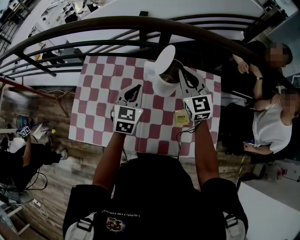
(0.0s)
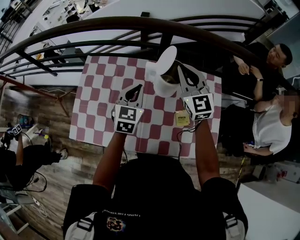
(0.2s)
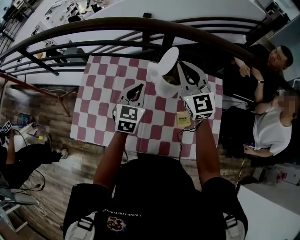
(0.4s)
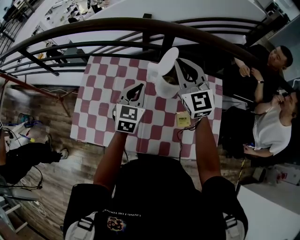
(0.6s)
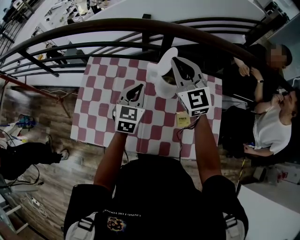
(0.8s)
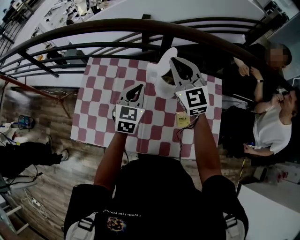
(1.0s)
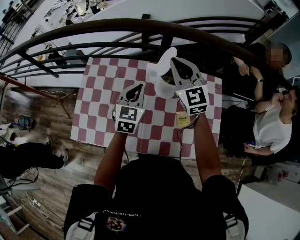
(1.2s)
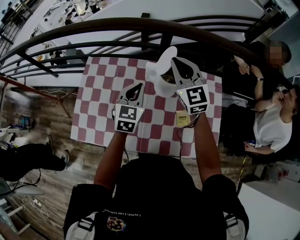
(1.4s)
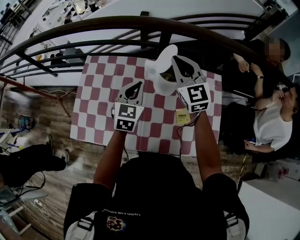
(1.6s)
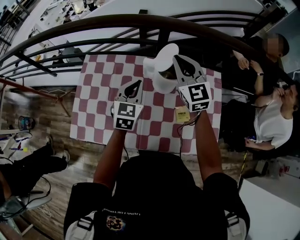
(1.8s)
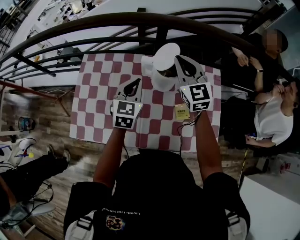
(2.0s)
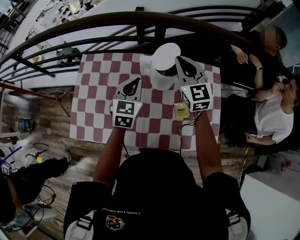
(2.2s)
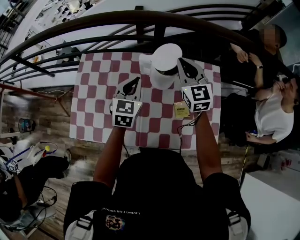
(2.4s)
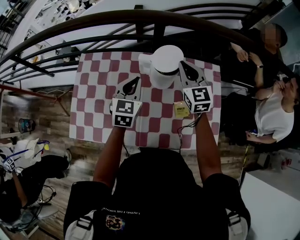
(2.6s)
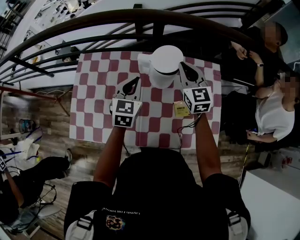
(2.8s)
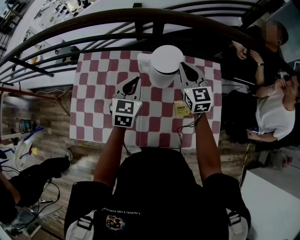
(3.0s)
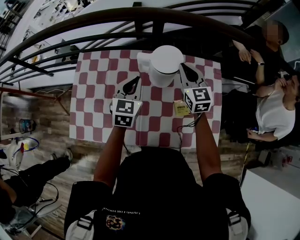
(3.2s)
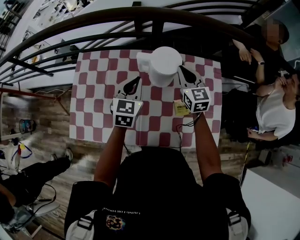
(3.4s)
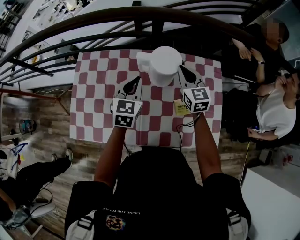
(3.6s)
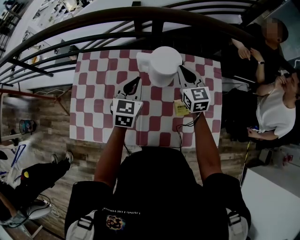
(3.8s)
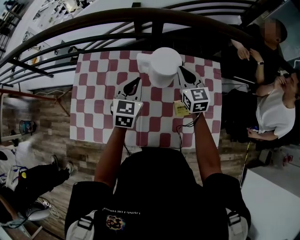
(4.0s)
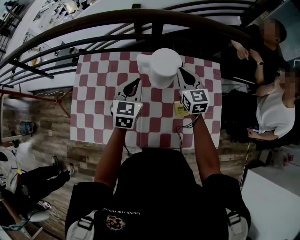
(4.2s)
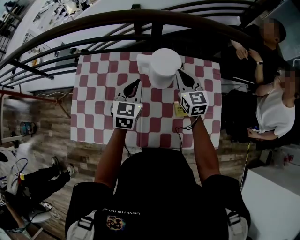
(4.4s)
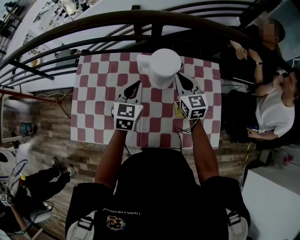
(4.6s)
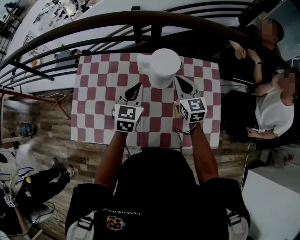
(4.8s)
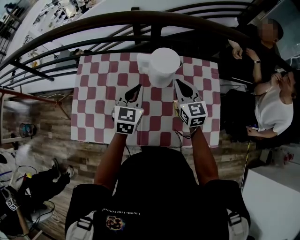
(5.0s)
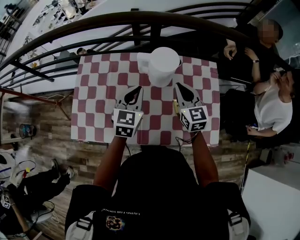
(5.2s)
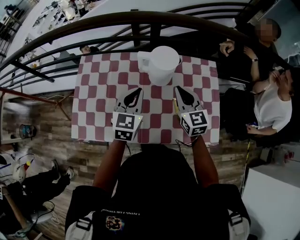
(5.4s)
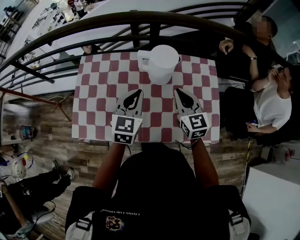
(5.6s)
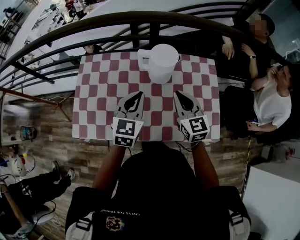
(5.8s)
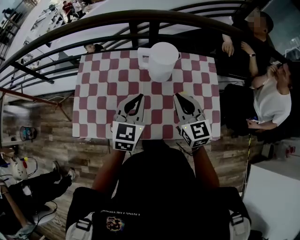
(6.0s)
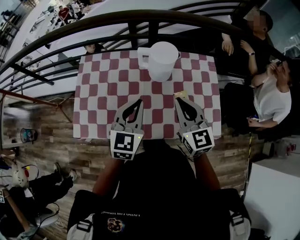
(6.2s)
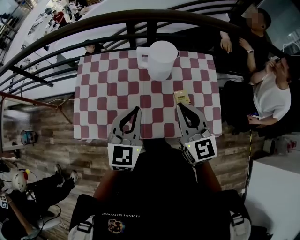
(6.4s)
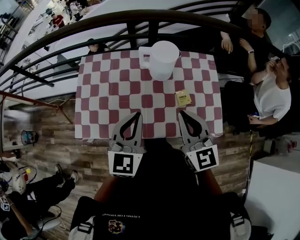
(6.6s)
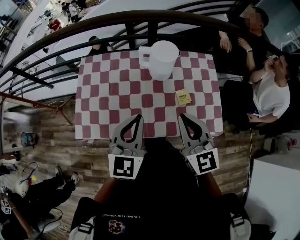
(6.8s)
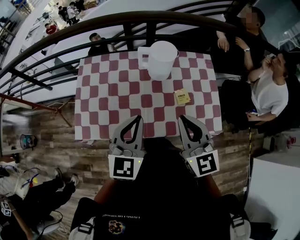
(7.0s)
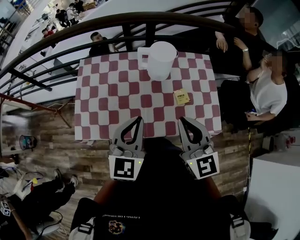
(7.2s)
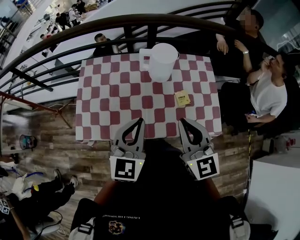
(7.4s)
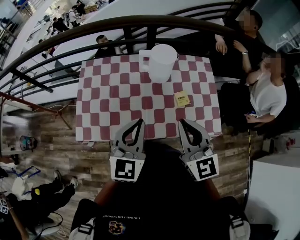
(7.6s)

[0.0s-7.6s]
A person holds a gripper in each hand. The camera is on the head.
0.0s to 1.6s: The right gripper changes place by about 5 cm.
1.6s to 3.0s: The right gripper goes some 10 cm downward and to the right.
3.0s to 4.6s: The right gripper moves some 5 cm.
4.6s to 6.0s: The right gripper travels backward by about 15 cm, while the left gripper travels backward and upward by about 15 cm.
6.0s to 7.6s: The two grippers go roughly 15 cm backward and upward.

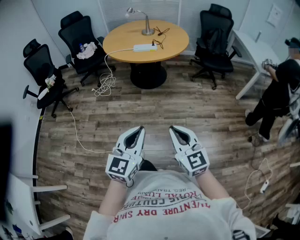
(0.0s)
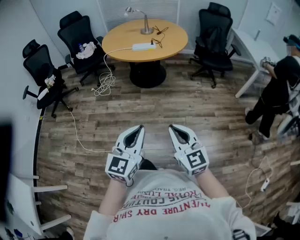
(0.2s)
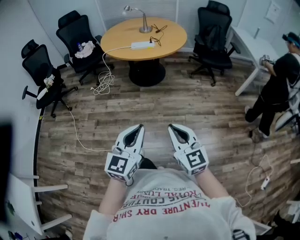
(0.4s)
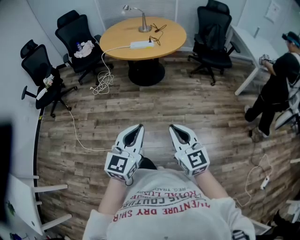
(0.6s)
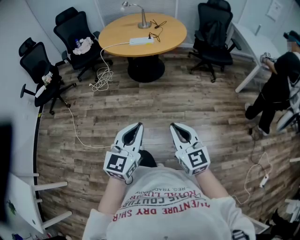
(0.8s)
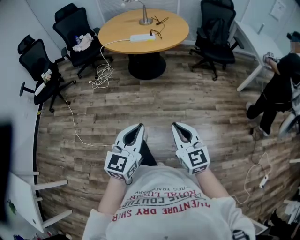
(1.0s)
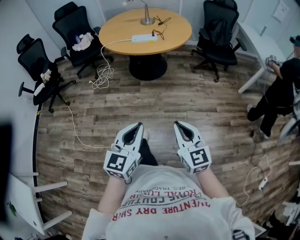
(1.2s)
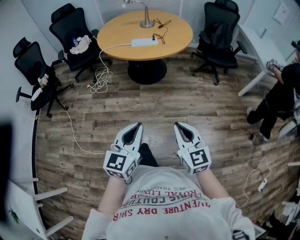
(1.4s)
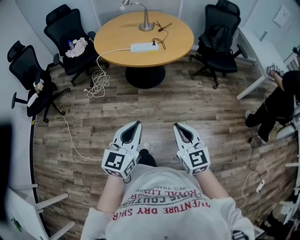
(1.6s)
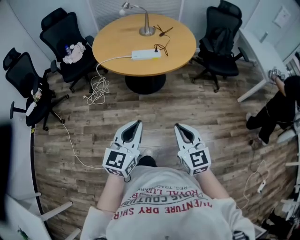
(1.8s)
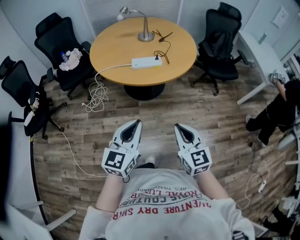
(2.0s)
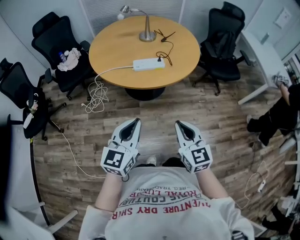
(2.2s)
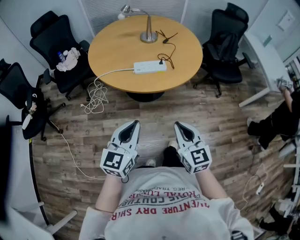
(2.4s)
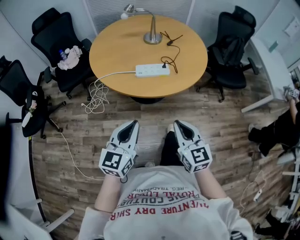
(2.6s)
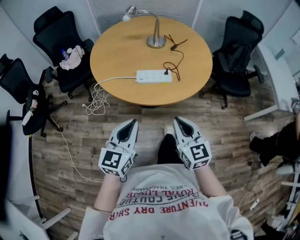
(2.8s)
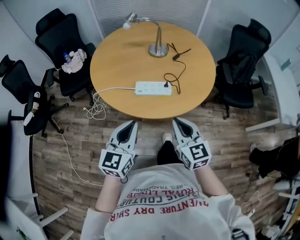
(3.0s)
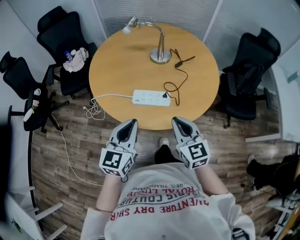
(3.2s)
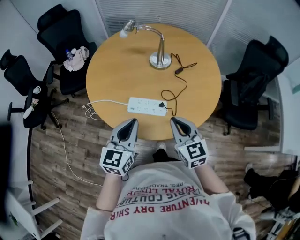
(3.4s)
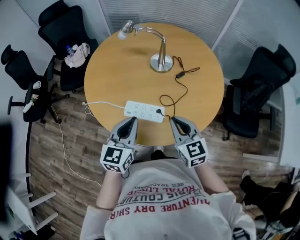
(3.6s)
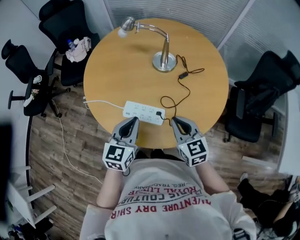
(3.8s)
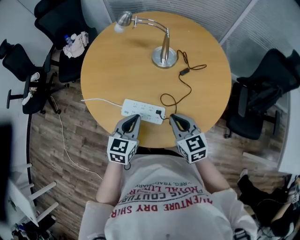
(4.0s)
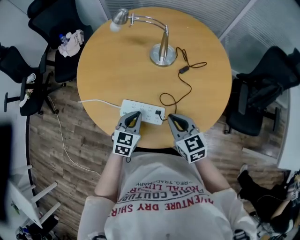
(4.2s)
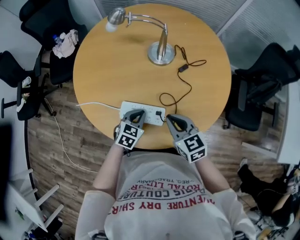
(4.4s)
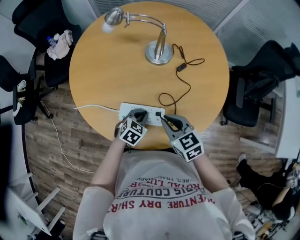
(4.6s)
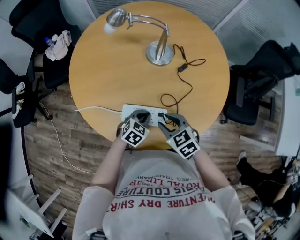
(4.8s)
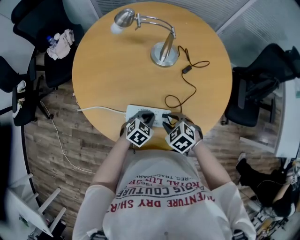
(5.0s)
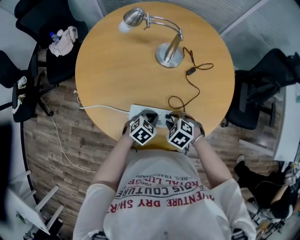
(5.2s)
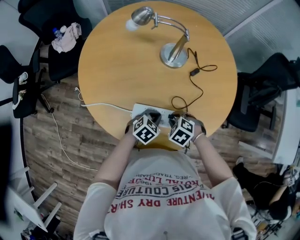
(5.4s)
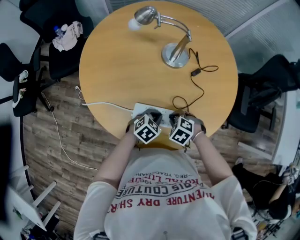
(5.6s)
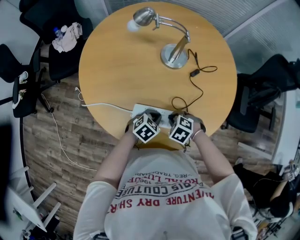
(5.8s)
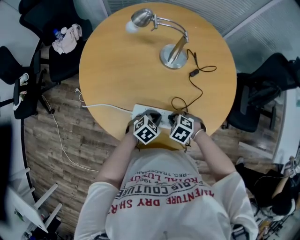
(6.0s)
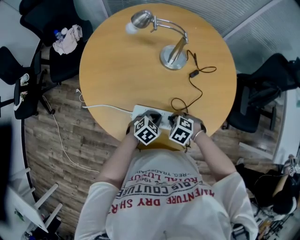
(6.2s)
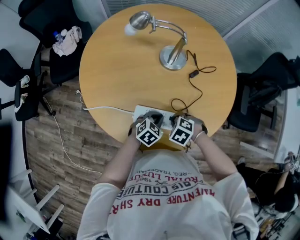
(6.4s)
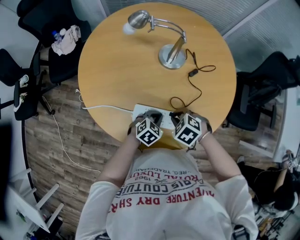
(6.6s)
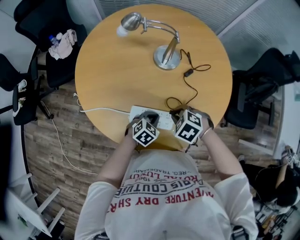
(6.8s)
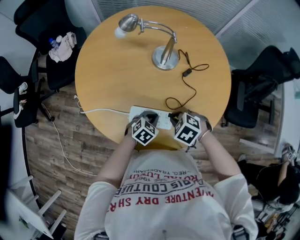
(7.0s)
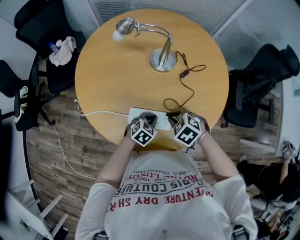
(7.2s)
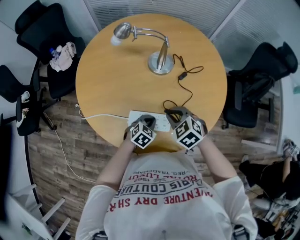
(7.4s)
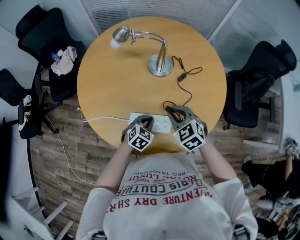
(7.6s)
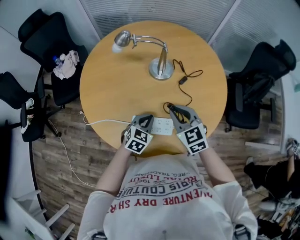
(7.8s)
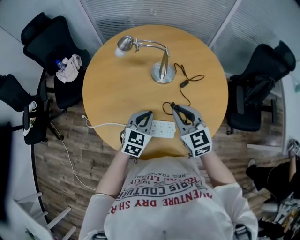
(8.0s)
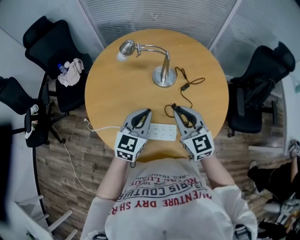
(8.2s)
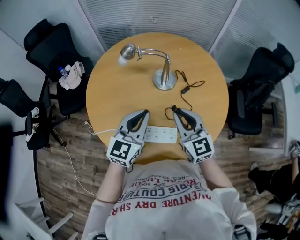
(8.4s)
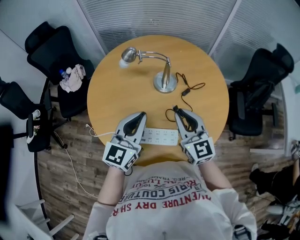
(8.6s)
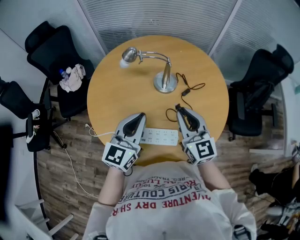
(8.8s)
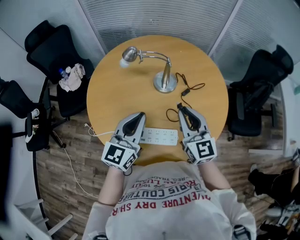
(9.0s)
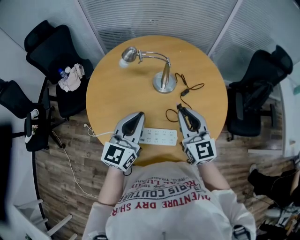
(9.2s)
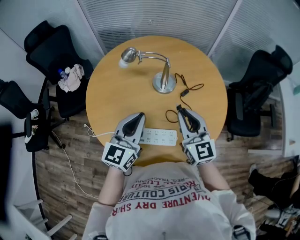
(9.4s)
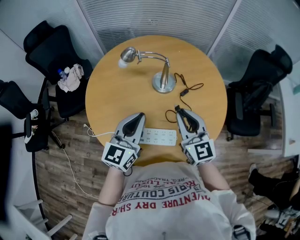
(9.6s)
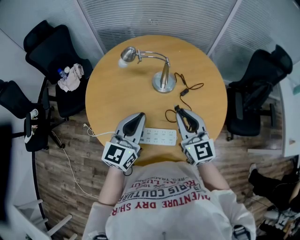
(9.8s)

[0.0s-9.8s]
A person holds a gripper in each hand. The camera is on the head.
0.0s to 1.4s: The two grippers go some 10 cm forward.
1.4s to 2.8s: The two grippers travel together, forward, roughly 40 cm.
2.8s to 4.2s: The right gripper moves forward, about 30 cm, and turns by some 30 degrees; the left gripper travels forward, downward and to the right by approximately 40 cm, and swivels some 30 degrees.
4.2s to 5.6s: The left gripper goes about 10 cm downward, and swivels about 30 degrees. Meanwhile the right gripper goes approximately 15 cm downward, and points its fingers roughly 50 degrees further downward.
5.6s to 7.0s: The right gripper heads upward, covering about 10 cm.
7.0s to 8.4s: The right gripper moves upward, about 20 cm, and angles its fingers upward, by approximately 60 degrees, while the left gripper heads upward, covering about 30 cm, and tips its fingers upward by about 40 degrees.
8.4s to 9.8s: The grippers make only small movements.

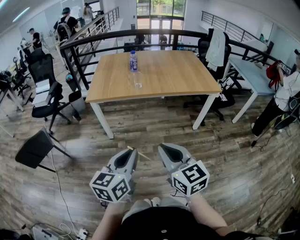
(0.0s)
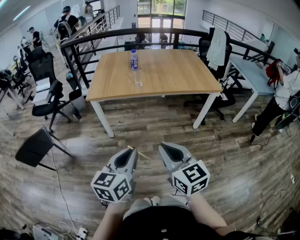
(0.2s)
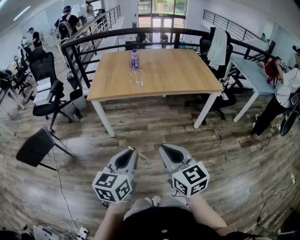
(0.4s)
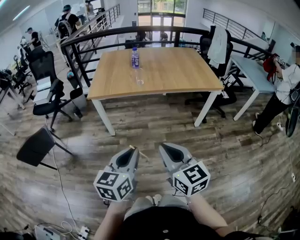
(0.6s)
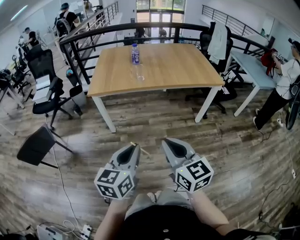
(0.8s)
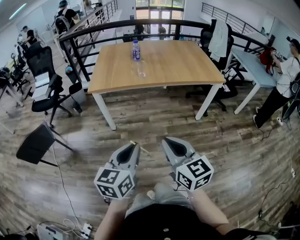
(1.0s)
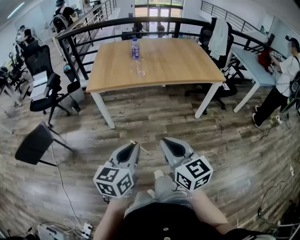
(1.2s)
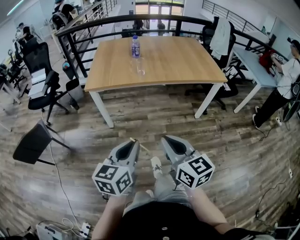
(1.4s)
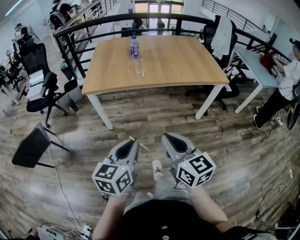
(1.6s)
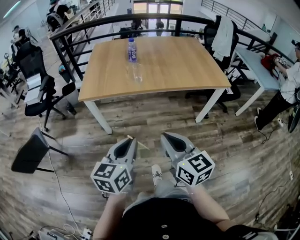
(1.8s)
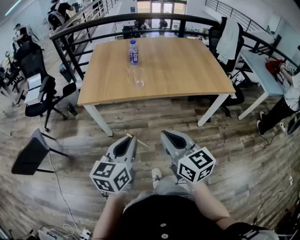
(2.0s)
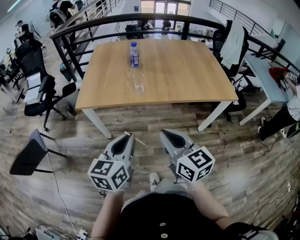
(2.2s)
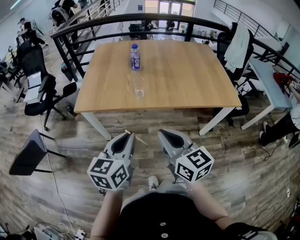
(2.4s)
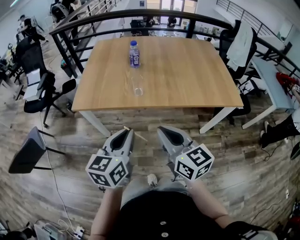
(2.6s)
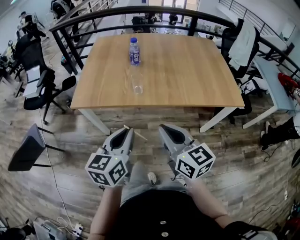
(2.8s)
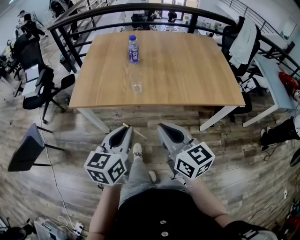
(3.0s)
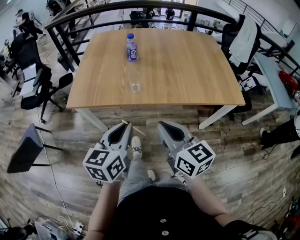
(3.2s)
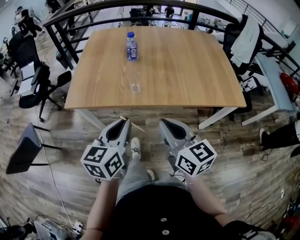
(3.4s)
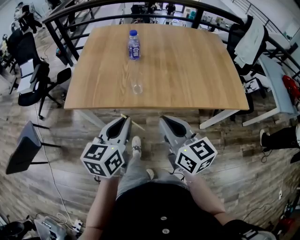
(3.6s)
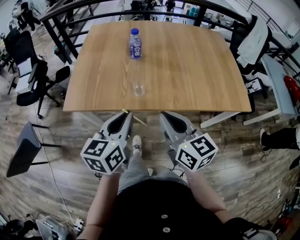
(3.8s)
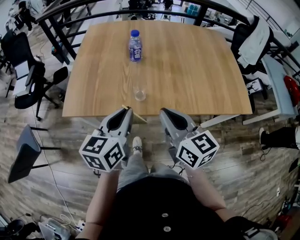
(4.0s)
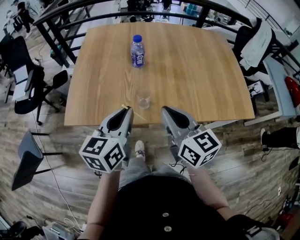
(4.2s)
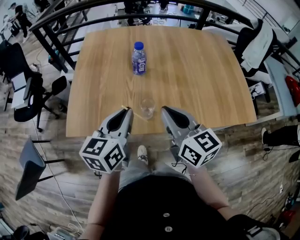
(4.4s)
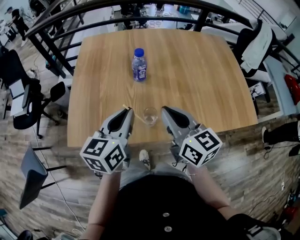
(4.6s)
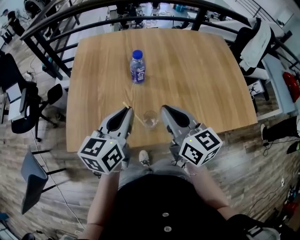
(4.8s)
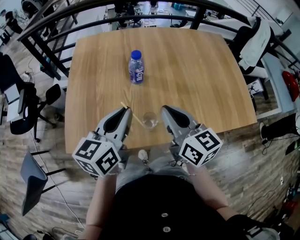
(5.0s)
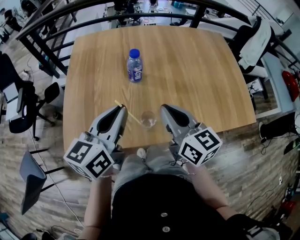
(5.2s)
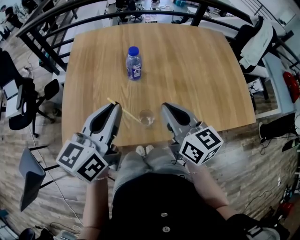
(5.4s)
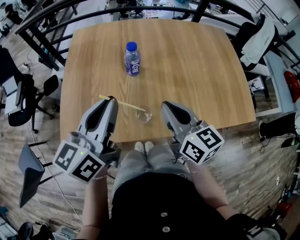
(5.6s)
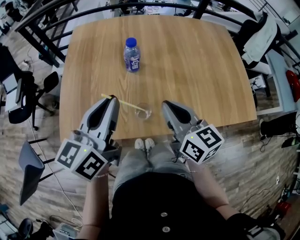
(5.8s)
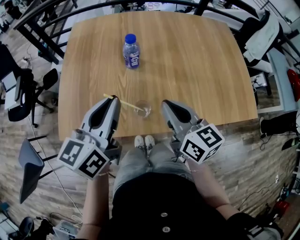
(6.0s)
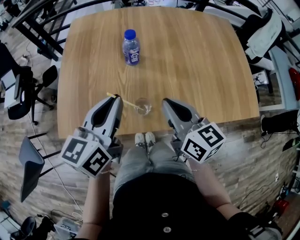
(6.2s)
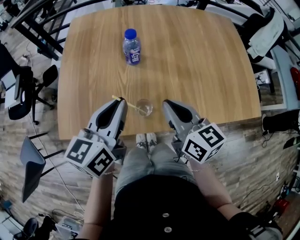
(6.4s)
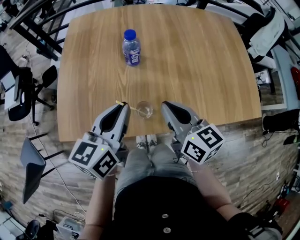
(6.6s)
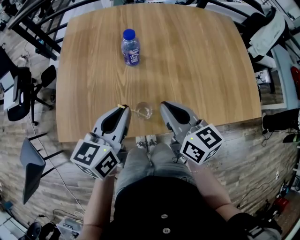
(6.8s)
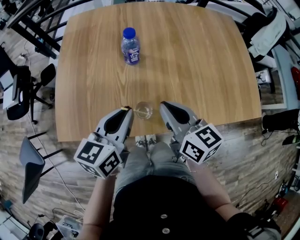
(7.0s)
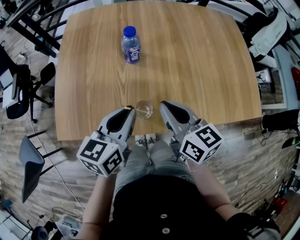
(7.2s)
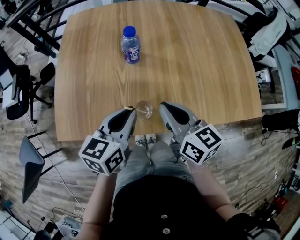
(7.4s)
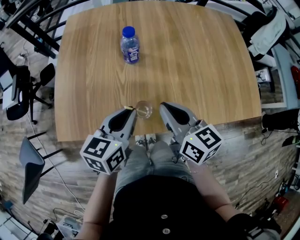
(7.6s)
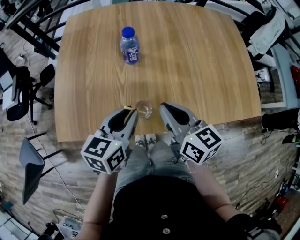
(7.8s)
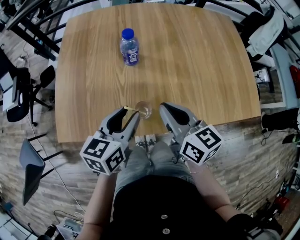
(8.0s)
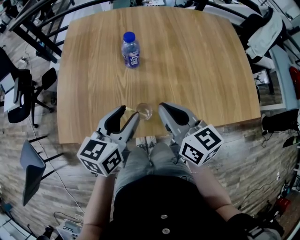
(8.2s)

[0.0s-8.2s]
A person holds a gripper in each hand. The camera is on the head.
0.0s to 1.6s: Both grippers move forward, some 10 cm.
1.6s to 3.2s: Both grippers travel together forward, about 30 cm.
3.2s to 5.0s: Both grippers move forward, roughly 35 cm.
5.0s to 6.6s: The right gripper heads downward, covering about 5 cm, while the left gripper travels upward and back again, some 5 cm each way.
6.6s to 8.2s: The left gripper opens up.
